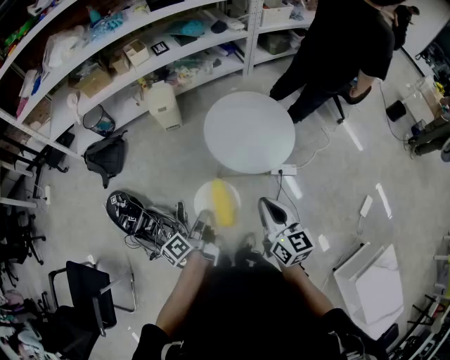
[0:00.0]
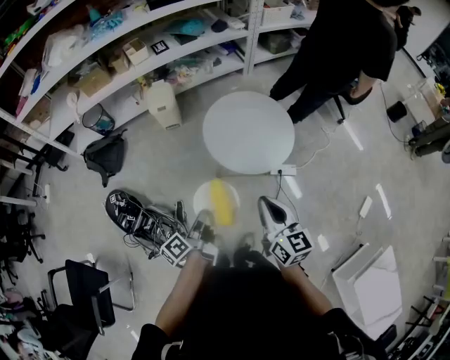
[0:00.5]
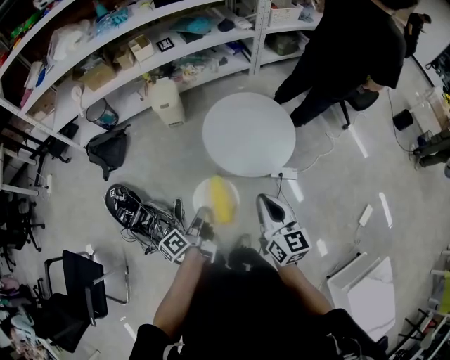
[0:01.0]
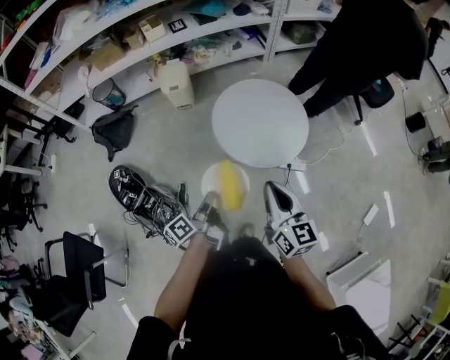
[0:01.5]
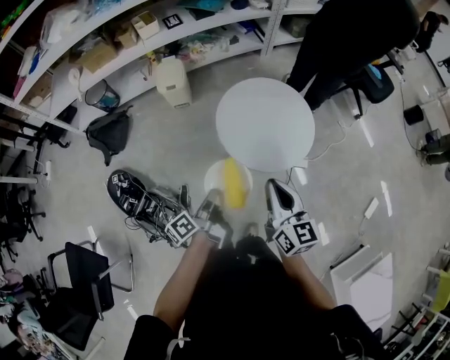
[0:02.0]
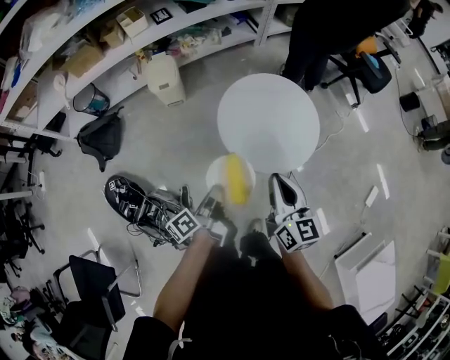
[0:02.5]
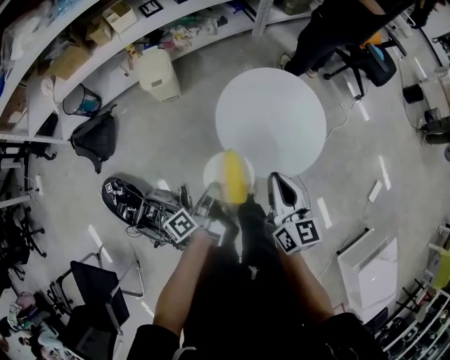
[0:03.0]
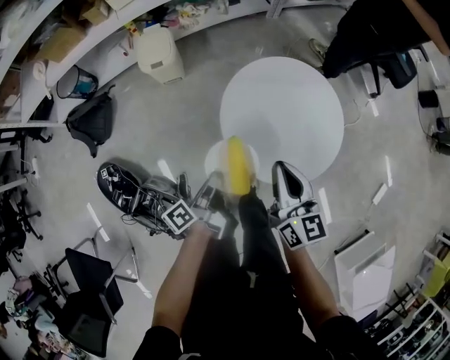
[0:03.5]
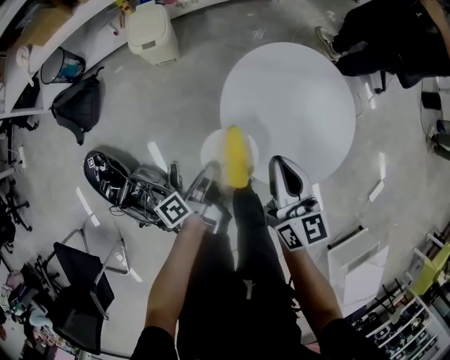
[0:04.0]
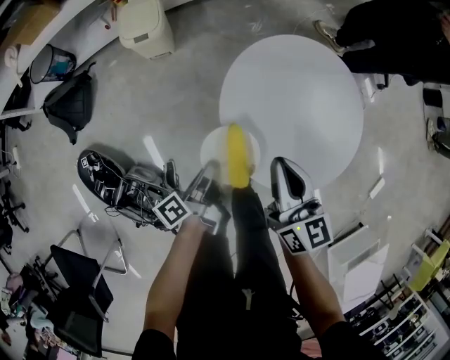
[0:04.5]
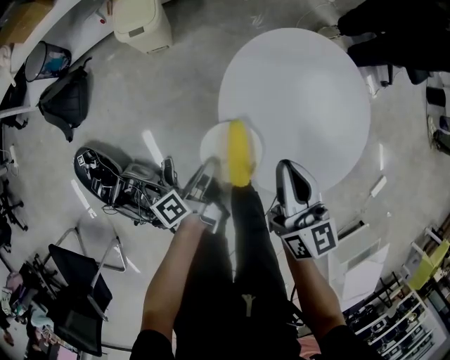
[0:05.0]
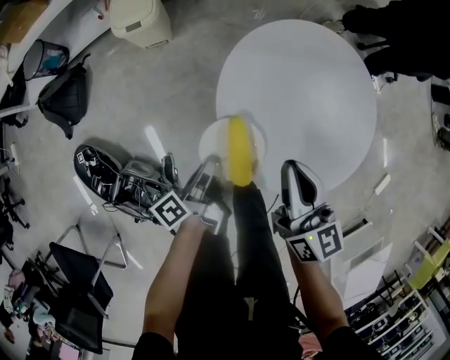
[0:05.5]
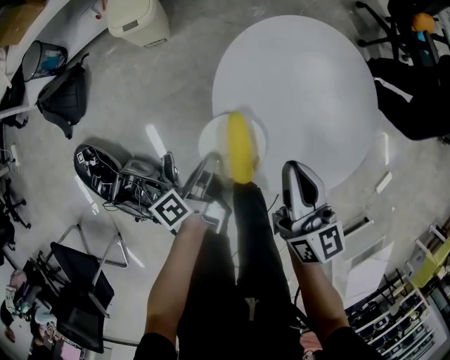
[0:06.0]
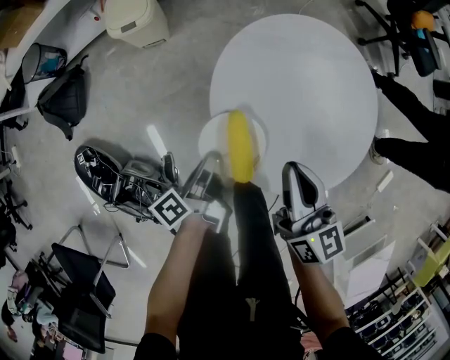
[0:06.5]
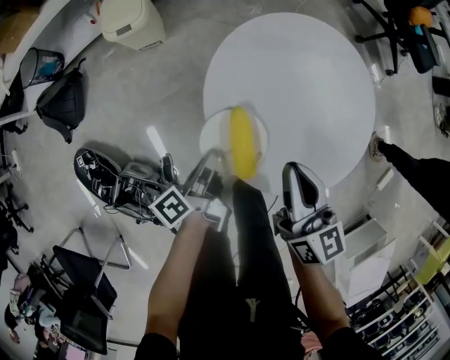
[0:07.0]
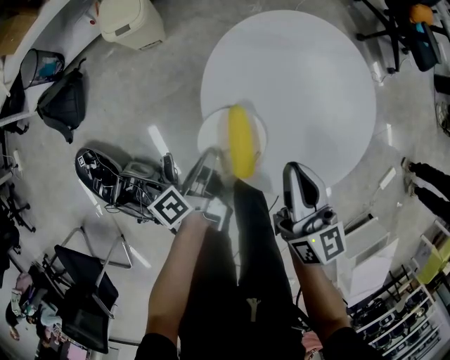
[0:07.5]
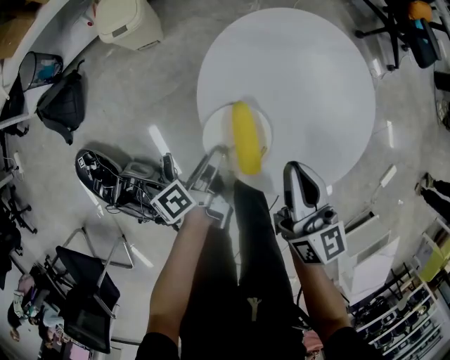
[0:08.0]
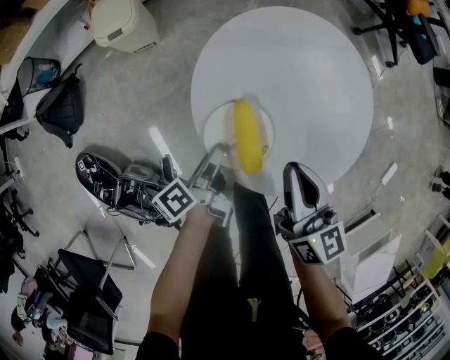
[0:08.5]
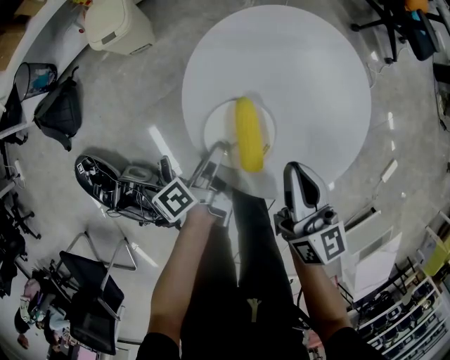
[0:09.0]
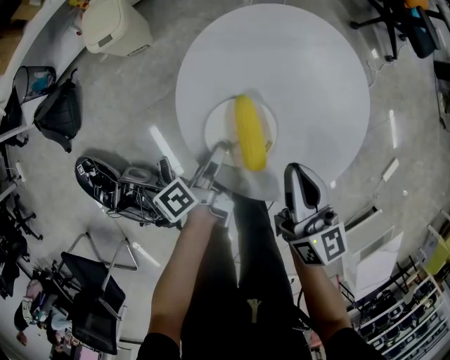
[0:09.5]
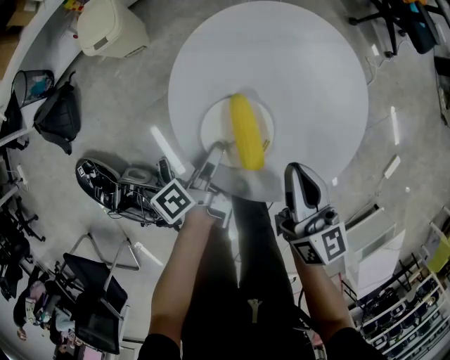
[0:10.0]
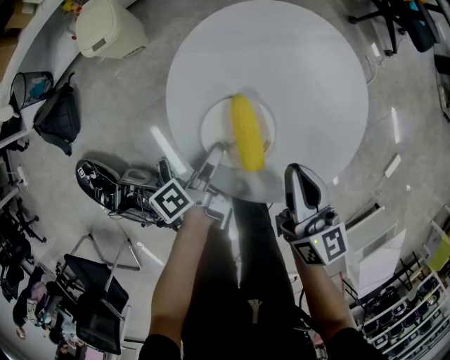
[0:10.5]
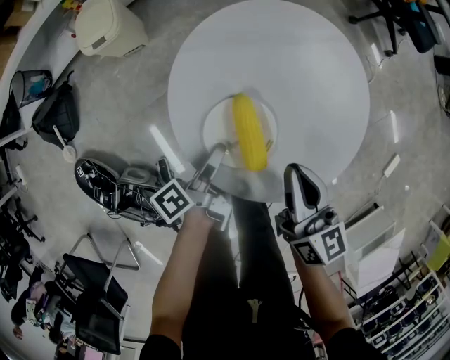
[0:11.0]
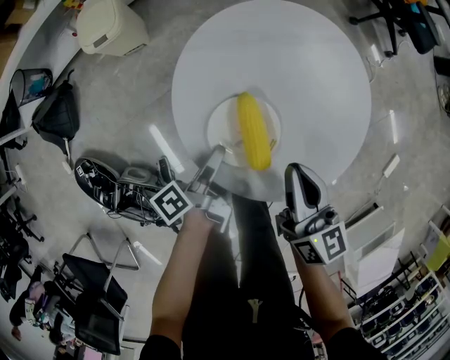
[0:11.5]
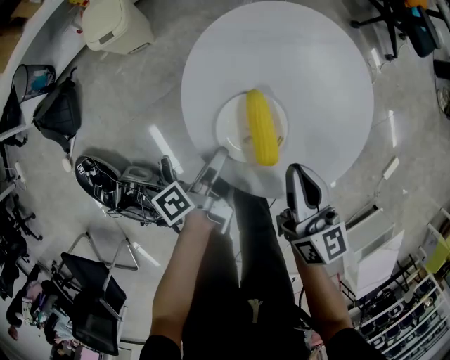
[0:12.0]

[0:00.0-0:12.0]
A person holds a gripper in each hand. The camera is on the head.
0:00.0 to 0:02.0: The right gripper moves some 10 cm.
0:02.0 to 0:04.0: The right gripper moves some 25 cm.
0:04.0 to 0:06.0: The right gripper goes roughly 5 cm downward.
0:08.0 to 0:10.0: The right gripper ends up about 5 cm from where it was.

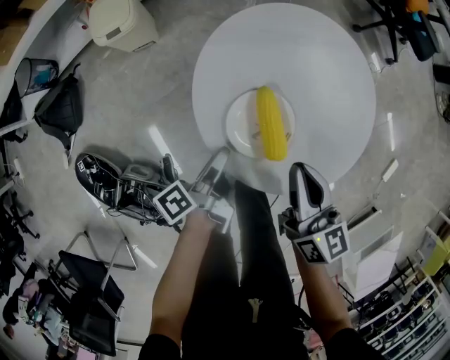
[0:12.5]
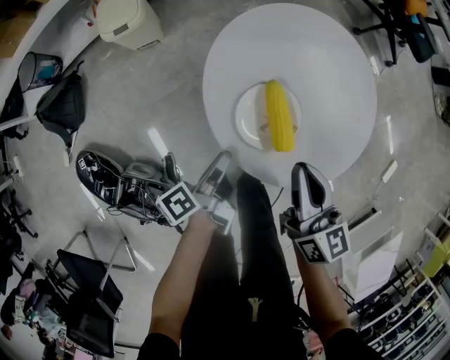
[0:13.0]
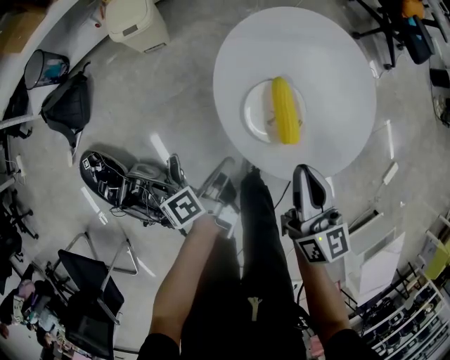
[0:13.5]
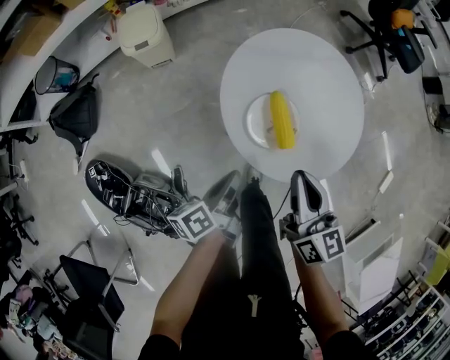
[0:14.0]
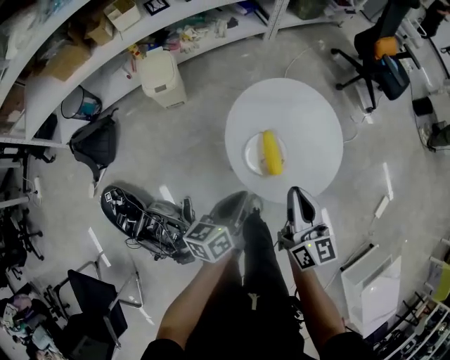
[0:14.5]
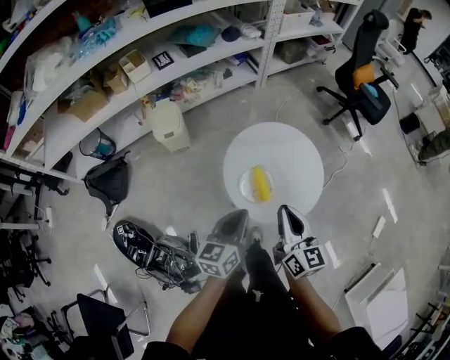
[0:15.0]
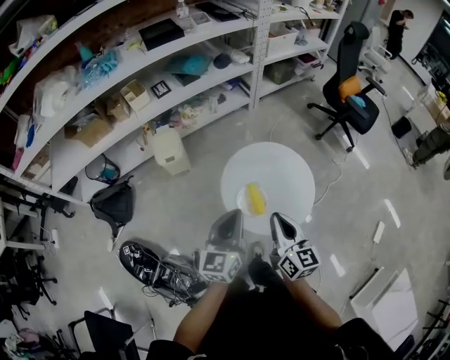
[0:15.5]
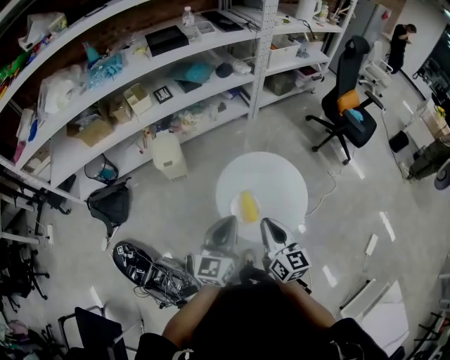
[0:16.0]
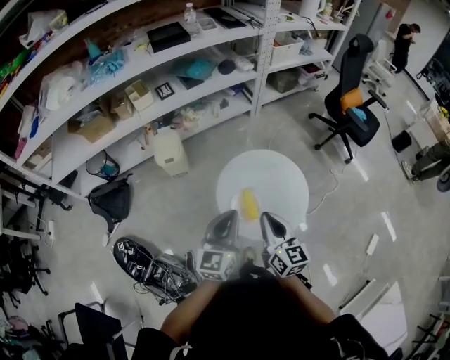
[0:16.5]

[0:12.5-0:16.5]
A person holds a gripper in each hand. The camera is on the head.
0:12.5 to 0:14.5: The right gripper goes approximately 15 cm upward.
0:14.5 to 0:16.5: The right gripper shifts approximately 10 cm upward.

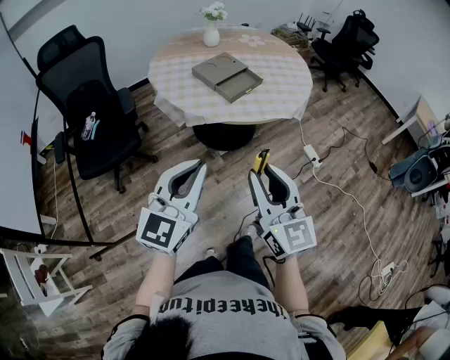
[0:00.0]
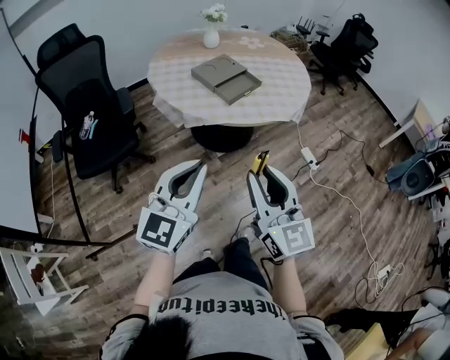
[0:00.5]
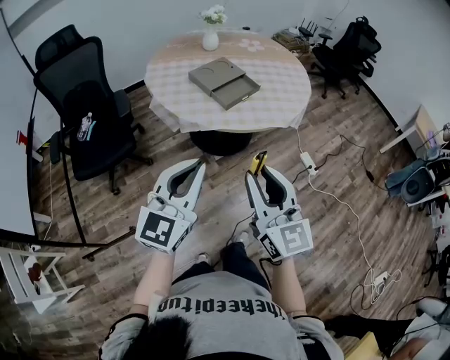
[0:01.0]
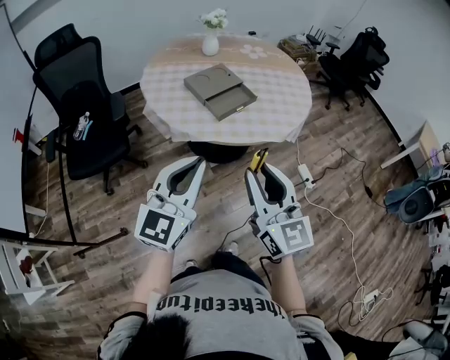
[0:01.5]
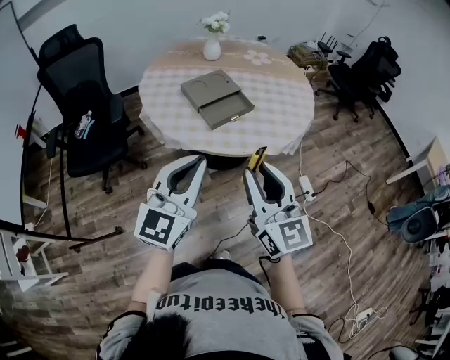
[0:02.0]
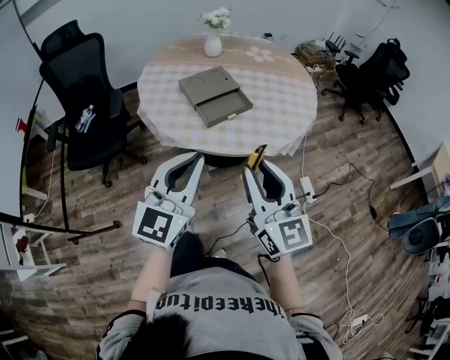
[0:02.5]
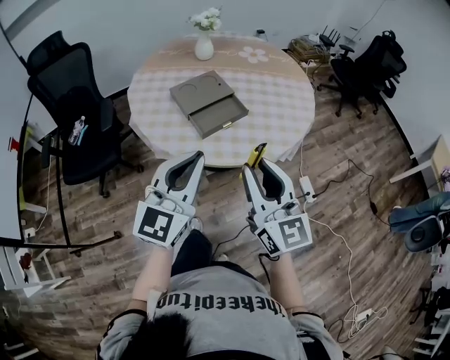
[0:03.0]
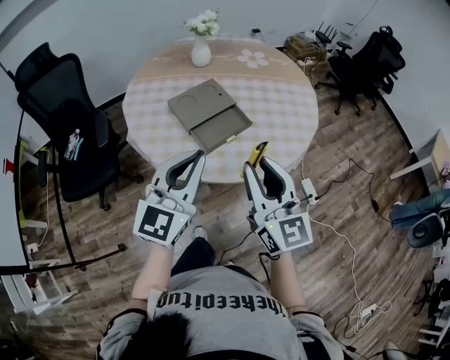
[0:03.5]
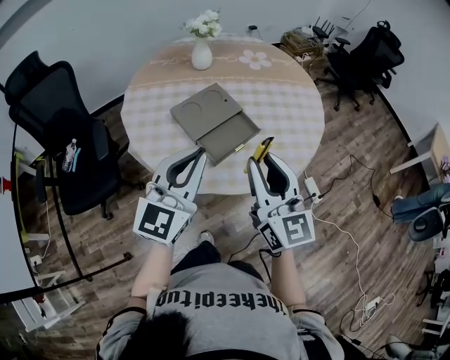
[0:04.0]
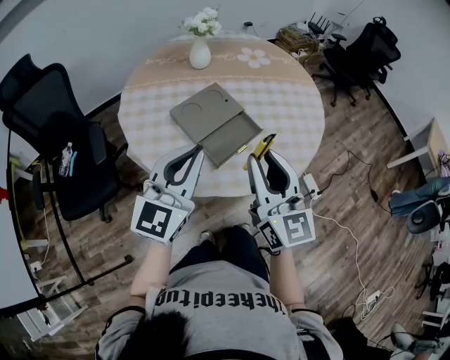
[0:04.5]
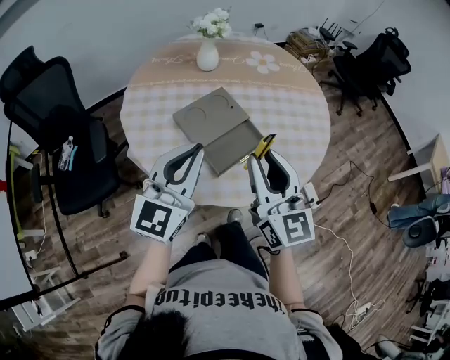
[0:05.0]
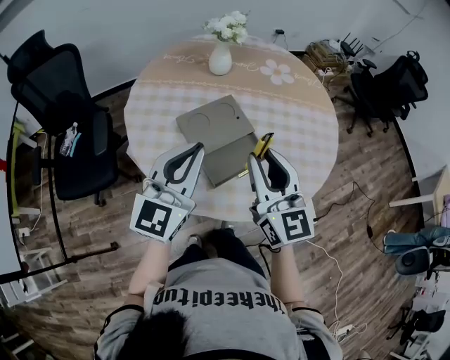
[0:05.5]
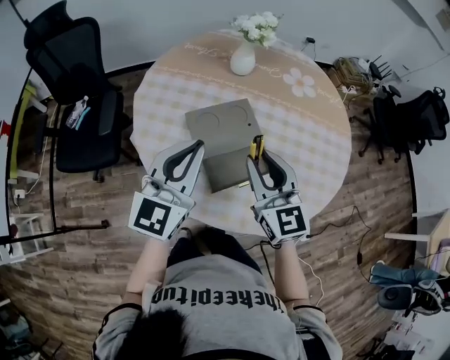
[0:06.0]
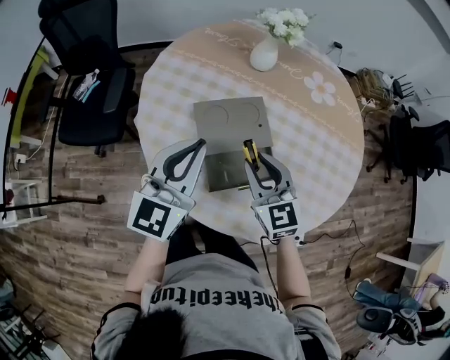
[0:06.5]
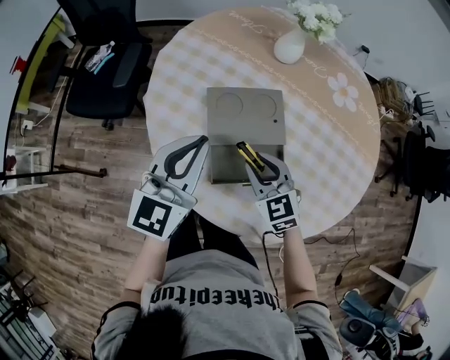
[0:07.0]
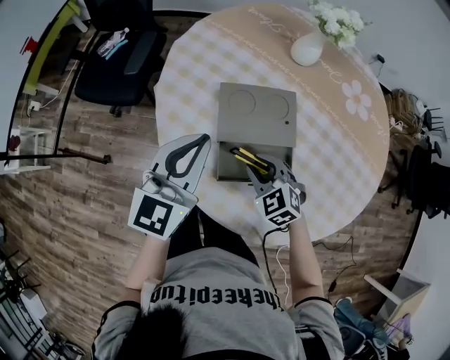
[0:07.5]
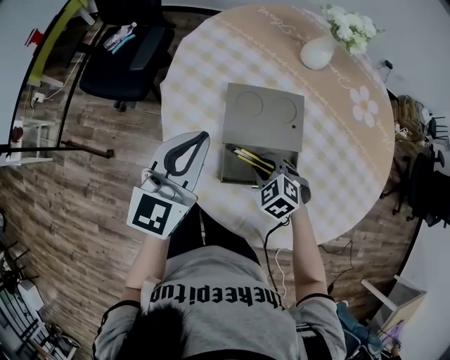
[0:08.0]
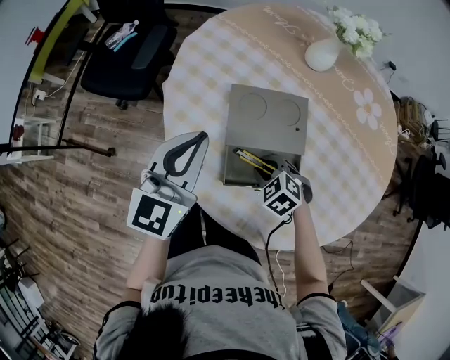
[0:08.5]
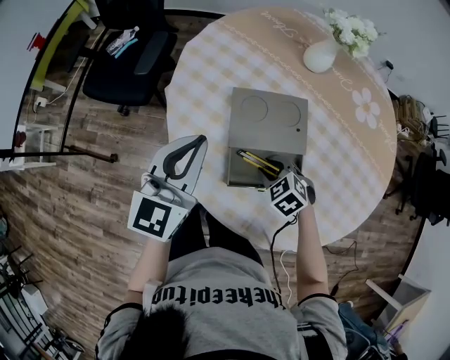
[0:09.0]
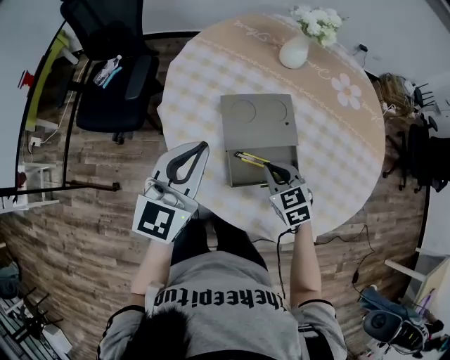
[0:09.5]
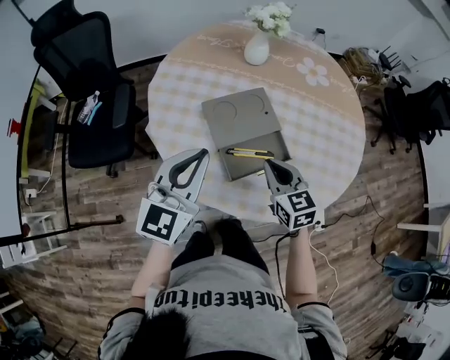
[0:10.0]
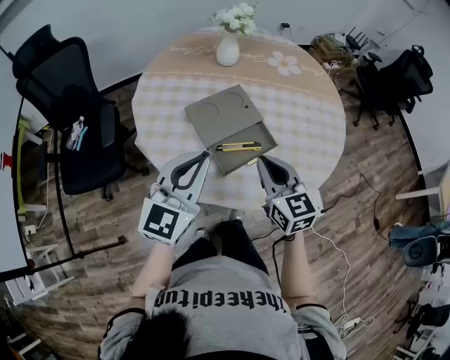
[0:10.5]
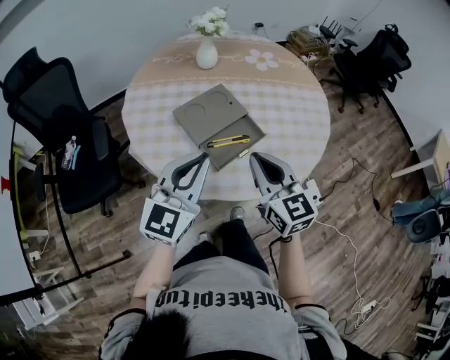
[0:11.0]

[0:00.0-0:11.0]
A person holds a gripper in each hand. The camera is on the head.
0:00.0 to 0:02.0: Both grippers travel together forward and to the right, about 20 cm.
0:02.0 to 0:03.5: The two grippers go approximately 15 cm forward.
0:03.5 to 0:05.5: Both grippers travel together forward, some 15 cm.
0:05.5 to 0:07.5: The left gripper shifts about 10 cm downward, and rotates some 30 degrees; the right gripper heads downward, covering some 25 cm, and tips its fingers downward by some 50 degrees.
0:07.5 to 0:09.0: The grippers move only a little.
0:09.0 to 0:11.0: The left gripper moves about 15 cm, and turns by approximately 40 degrees. Meanwhile the right gripper moves upward, approximately 25 cm, tips its fingers upward by some 50 degrees, and closes up.
